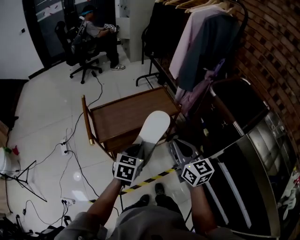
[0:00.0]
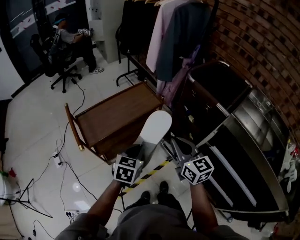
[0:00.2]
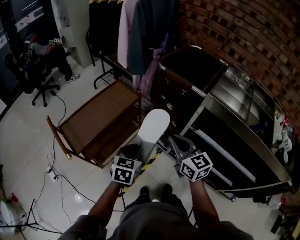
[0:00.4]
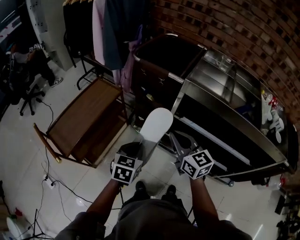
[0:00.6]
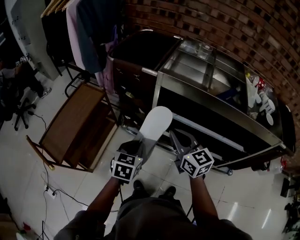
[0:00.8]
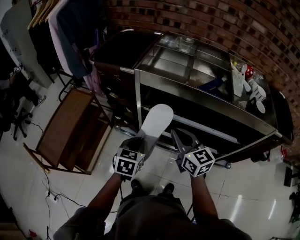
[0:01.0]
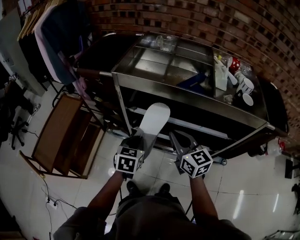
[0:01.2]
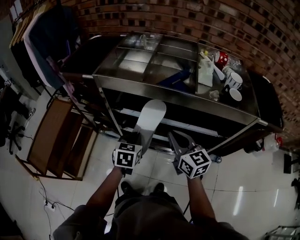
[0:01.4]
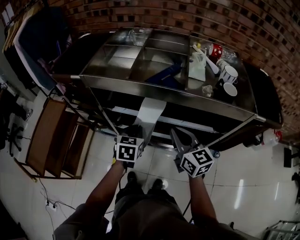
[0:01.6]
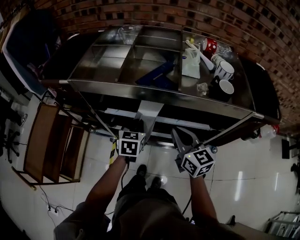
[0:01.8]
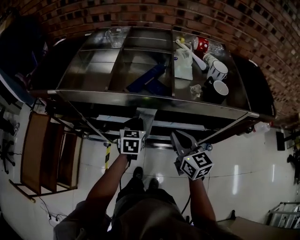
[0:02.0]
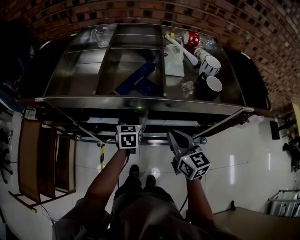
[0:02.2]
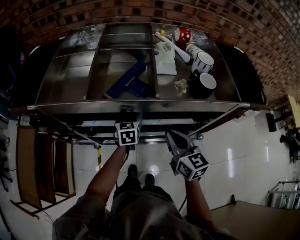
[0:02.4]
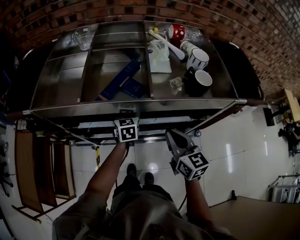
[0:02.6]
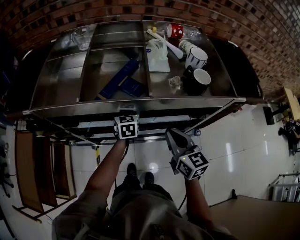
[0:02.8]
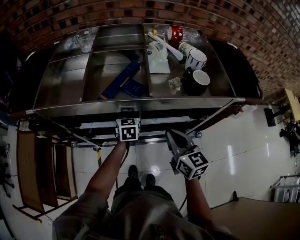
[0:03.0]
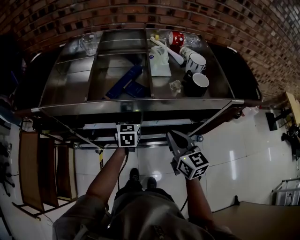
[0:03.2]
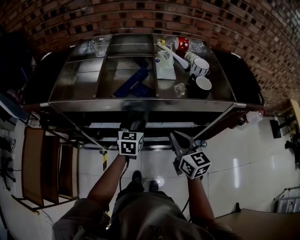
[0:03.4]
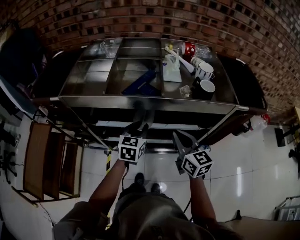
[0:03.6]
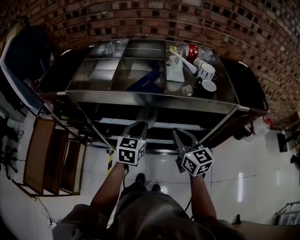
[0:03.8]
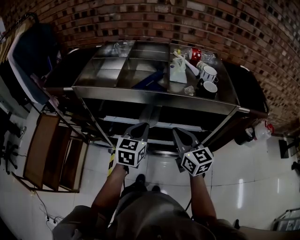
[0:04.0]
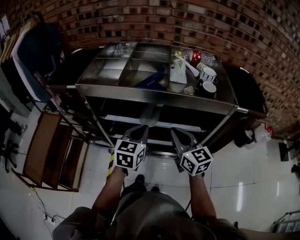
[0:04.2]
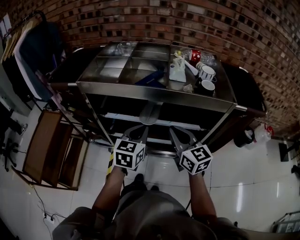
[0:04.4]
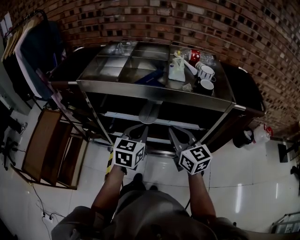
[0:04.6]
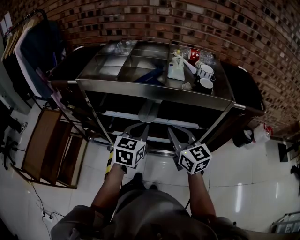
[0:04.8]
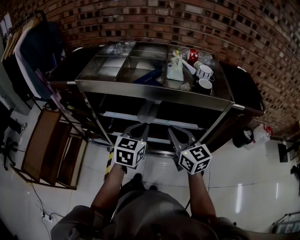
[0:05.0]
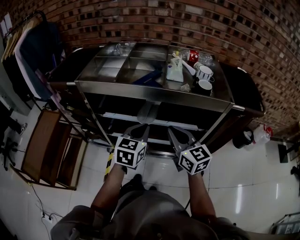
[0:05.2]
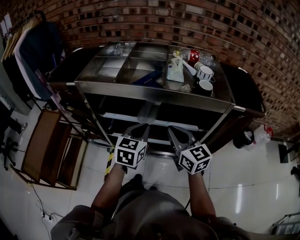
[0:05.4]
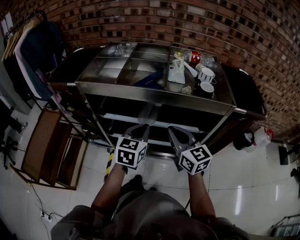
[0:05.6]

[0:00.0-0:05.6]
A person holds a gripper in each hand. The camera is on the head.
0:00.0 to 0:01.4: The two grippers travel together, approximately 50 cm. The right gripper turns by approximately 50 degrees; the left gripper rotates some 50 degrees.
0:01.4 to 0:02.8: The left gripper moves forward and to the right, some 25 cm. The right gripper is displaced to the right by some 15 cm, and turns by approximately 20 degrees.
0:02.8 to 0:04.2: The right gripper moves upward and backward, about 10 cm. Meanwhile the left gripper heads backward and upward, covering roughly 25 cm, and opens, then closes again.
0:04.2 to 0:05.6: There are only small adjustments of the grippers.

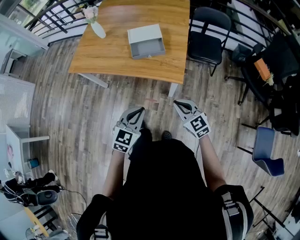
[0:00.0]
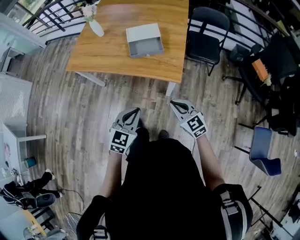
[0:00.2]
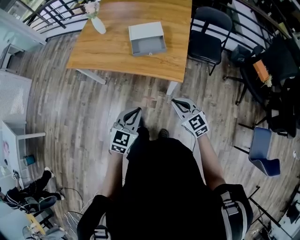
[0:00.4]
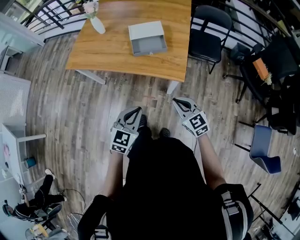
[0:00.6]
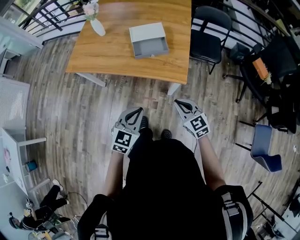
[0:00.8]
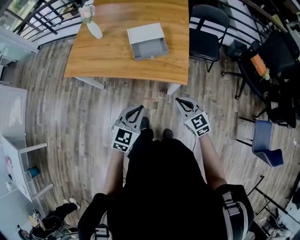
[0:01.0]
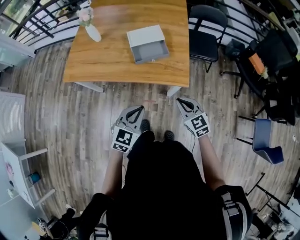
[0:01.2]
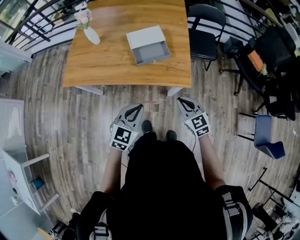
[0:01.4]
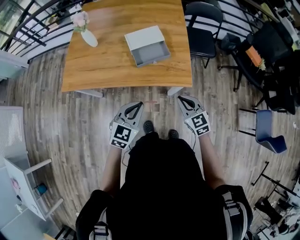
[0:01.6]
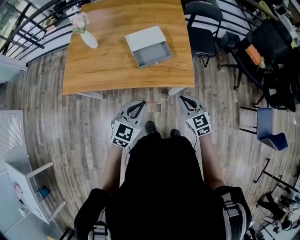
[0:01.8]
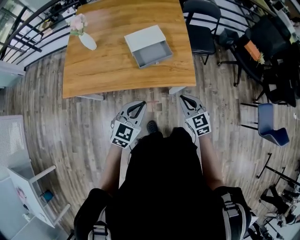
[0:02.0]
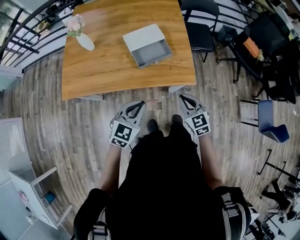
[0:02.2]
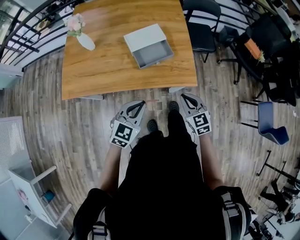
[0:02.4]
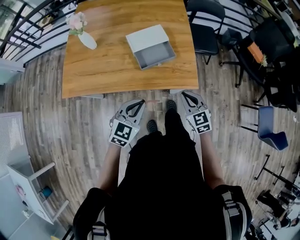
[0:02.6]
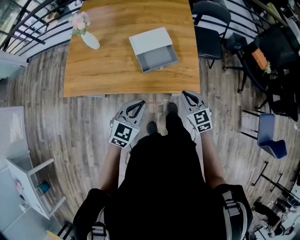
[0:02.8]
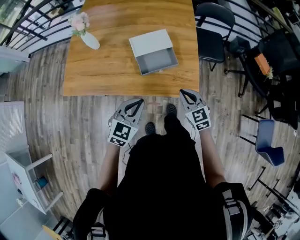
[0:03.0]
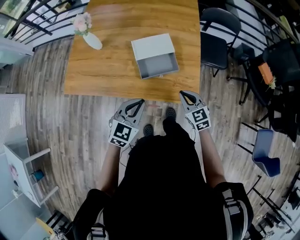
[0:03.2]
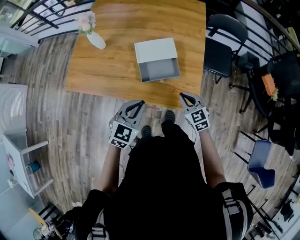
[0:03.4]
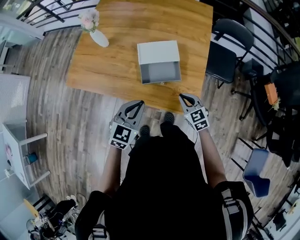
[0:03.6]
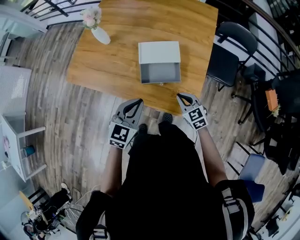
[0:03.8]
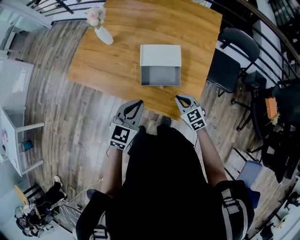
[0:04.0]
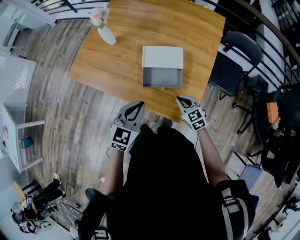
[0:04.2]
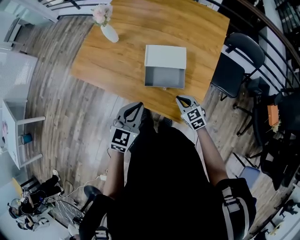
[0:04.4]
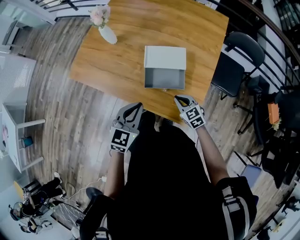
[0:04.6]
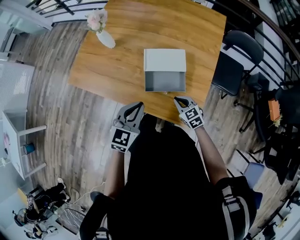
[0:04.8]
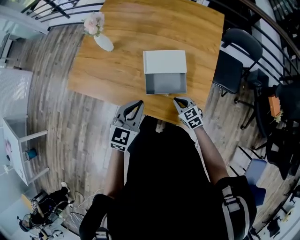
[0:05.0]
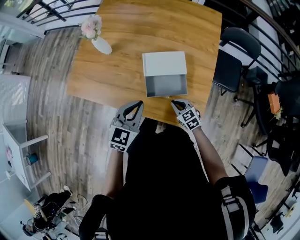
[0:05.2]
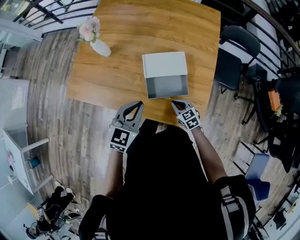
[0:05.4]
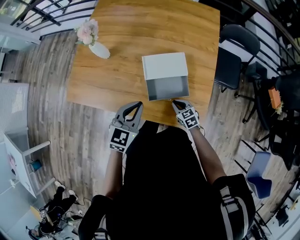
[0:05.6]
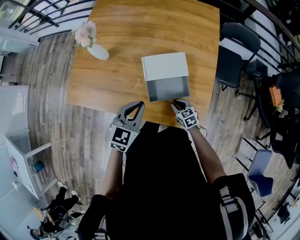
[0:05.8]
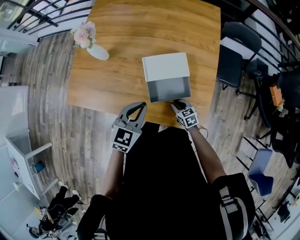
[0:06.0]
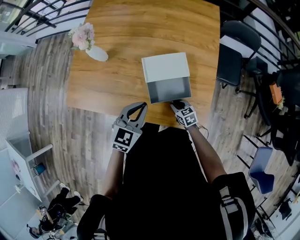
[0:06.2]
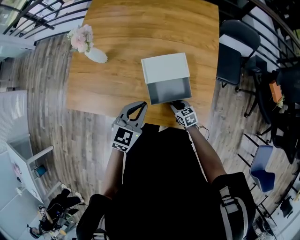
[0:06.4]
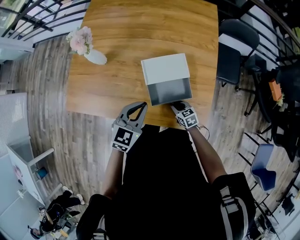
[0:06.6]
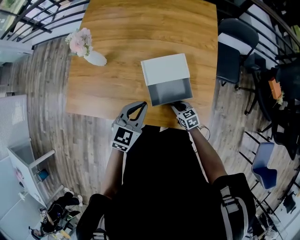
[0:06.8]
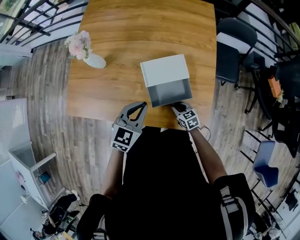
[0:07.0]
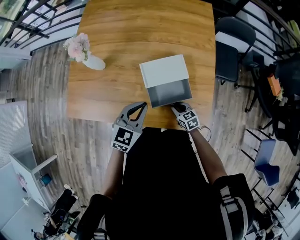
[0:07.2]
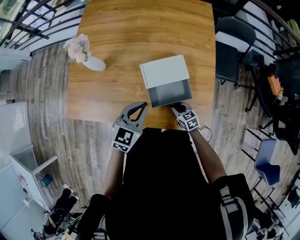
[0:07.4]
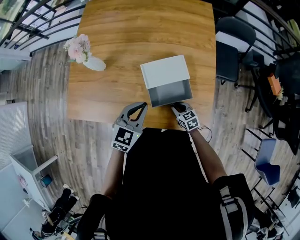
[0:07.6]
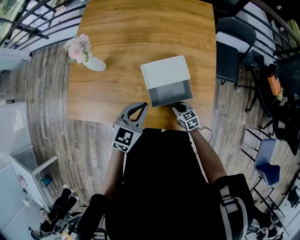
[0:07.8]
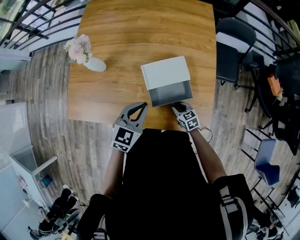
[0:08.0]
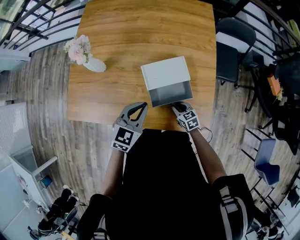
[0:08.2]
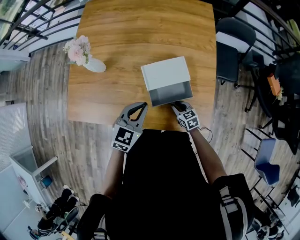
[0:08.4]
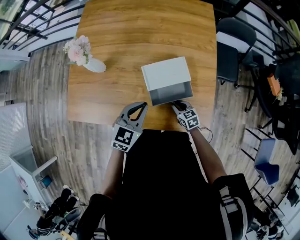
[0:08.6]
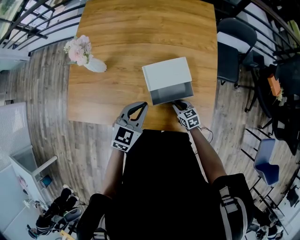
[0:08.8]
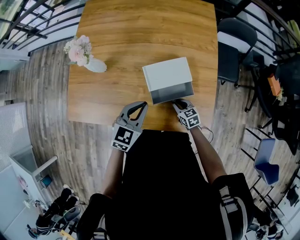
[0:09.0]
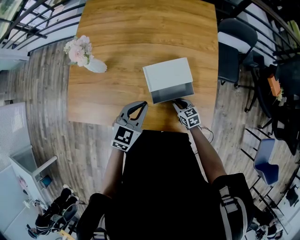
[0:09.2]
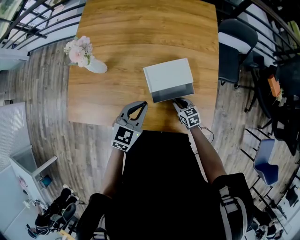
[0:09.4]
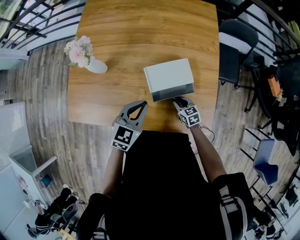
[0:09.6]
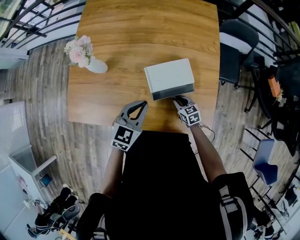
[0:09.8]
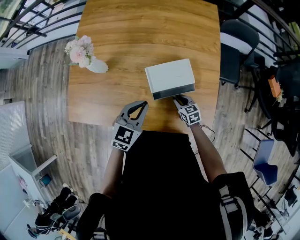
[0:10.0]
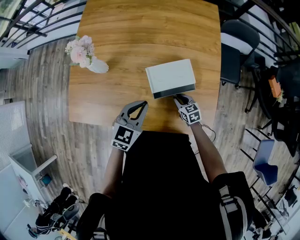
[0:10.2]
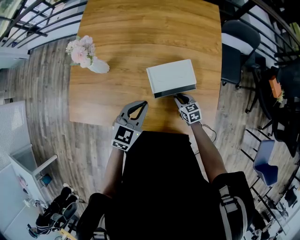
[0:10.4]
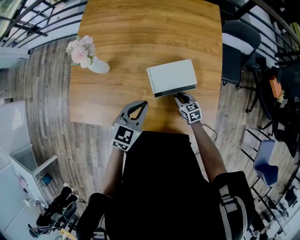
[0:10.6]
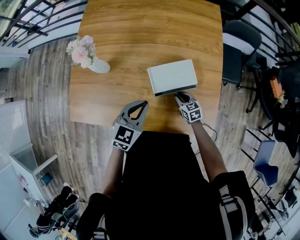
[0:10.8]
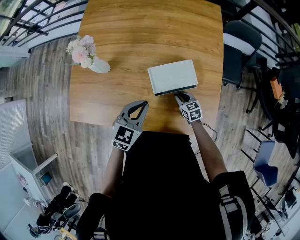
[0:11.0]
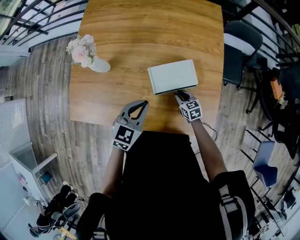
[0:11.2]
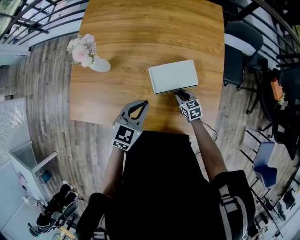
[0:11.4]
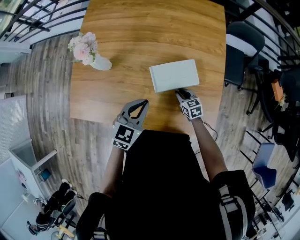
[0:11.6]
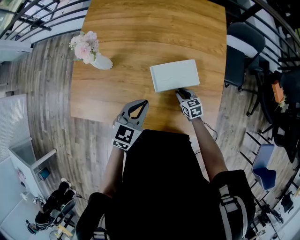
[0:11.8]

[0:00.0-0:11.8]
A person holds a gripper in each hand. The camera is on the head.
0:00.0 to 0:01.4: The right gripper is displaced forward and to the left by roughly 15 cm. The left gripper goes about 20 cm to the left and forward.
0:01.4 to 0:03.0: Both grippers travel together forward, roughly 15 cm.
0:03.0 to 0:04.4: The right gripper shifts by about 15 cm, and changes its angle by about 30 degrees. The left gripper moves some 10 cm, and turns by roughly 30 degrees.
0:04.4 to 0:06.0: The left gripper goes roughly 15 cm forward, while the right gripper goes some 15 cm downward, forward and to the left, and turns by roughly 30 degrees.
0:06.0 to 0:07.4: The grippers make only small movements.
0:07.4 to 0:08.8: The grippers make only small movements.
0:08.8 to 0:10.4: The right gripper heads forward, covering some 5 cm.
0:10.4 to 0:11.8: There are only small adjustments of the grippers.

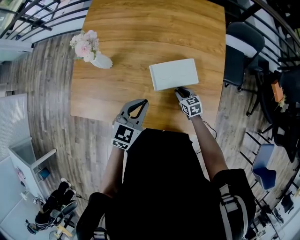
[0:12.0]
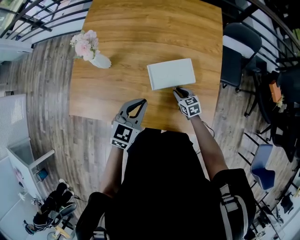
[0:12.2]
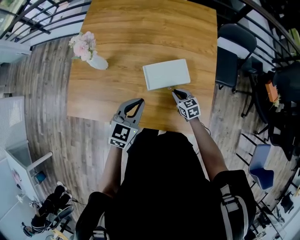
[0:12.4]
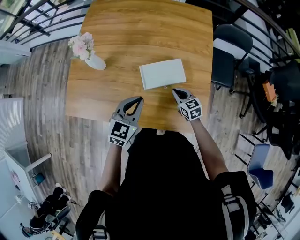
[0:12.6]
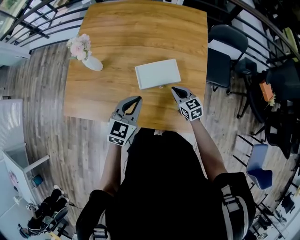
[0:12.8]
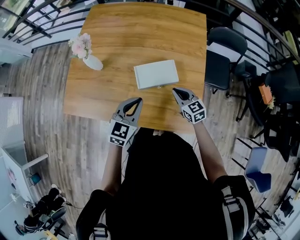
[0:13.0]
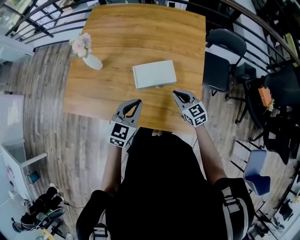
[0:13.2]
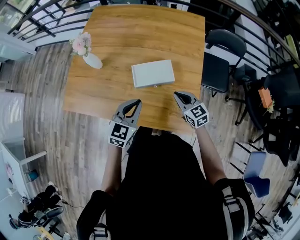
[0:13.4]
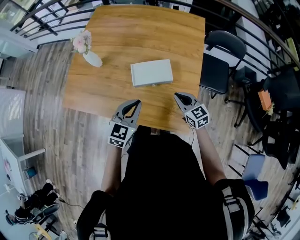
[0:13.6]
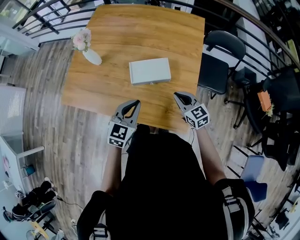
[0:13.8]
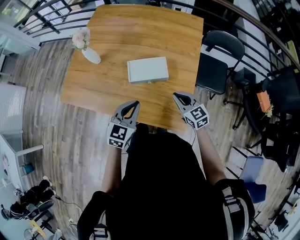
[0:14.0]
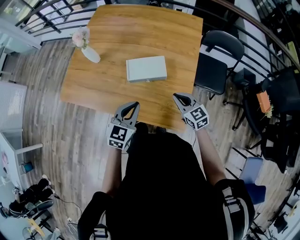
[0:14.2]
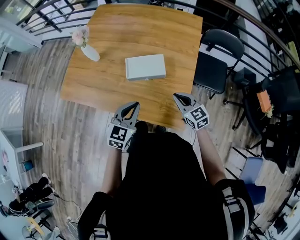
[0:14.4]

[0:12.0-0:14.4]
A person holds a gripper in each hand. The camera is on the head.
0:12.0 to 0:13.2: The left gripper moves to the right and backward, about 10 cm, while the right gripper travels upward, to the right and backward by approximately 20 cm, and turns by approximately 20 degrees.
0:13.2 to 0:14.4: The two grippers go approximately 10 cm backward and to the right.

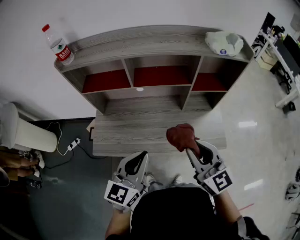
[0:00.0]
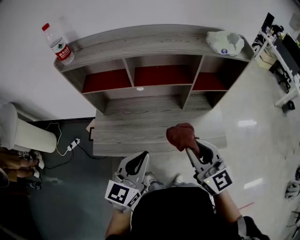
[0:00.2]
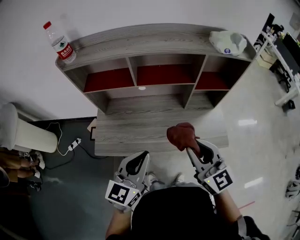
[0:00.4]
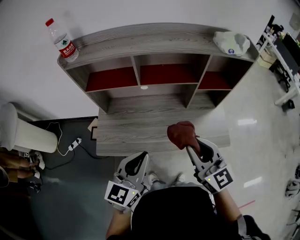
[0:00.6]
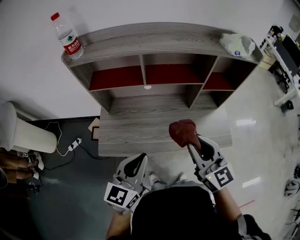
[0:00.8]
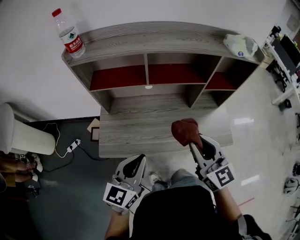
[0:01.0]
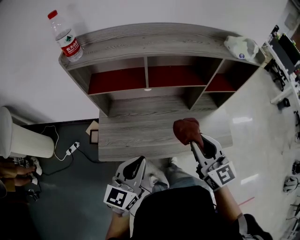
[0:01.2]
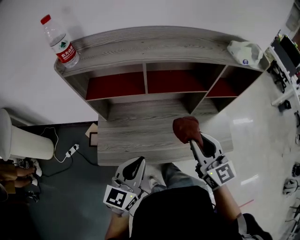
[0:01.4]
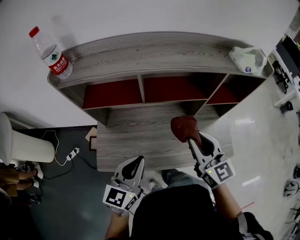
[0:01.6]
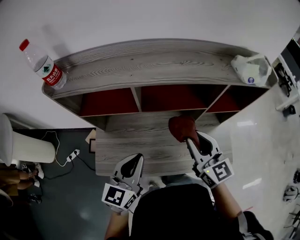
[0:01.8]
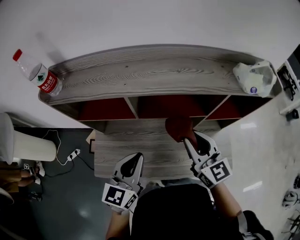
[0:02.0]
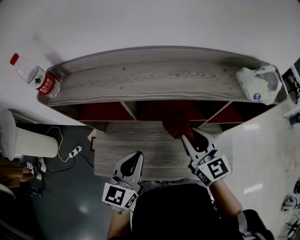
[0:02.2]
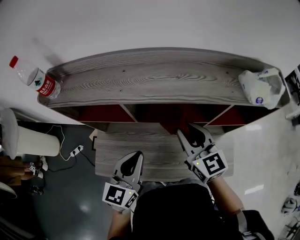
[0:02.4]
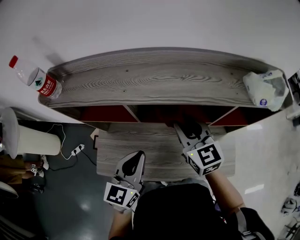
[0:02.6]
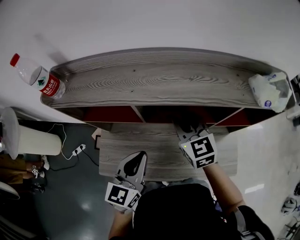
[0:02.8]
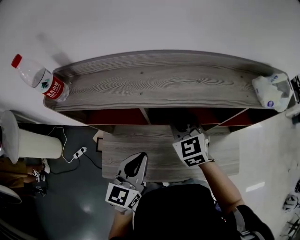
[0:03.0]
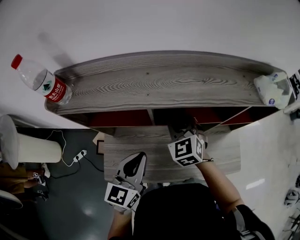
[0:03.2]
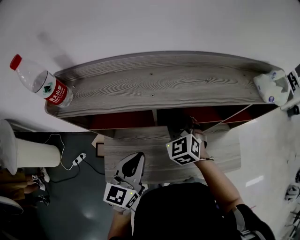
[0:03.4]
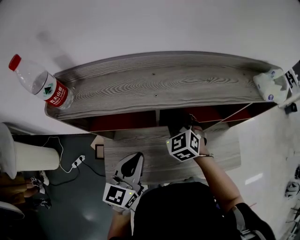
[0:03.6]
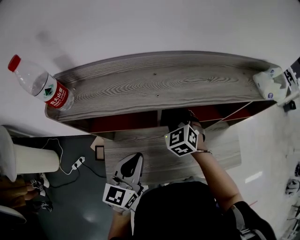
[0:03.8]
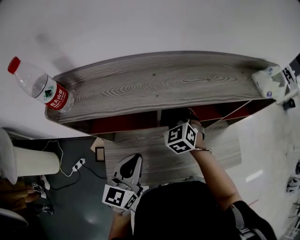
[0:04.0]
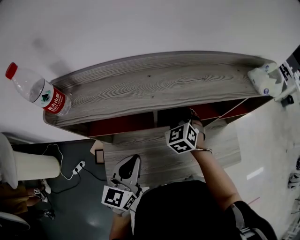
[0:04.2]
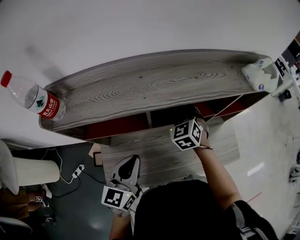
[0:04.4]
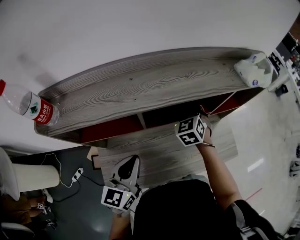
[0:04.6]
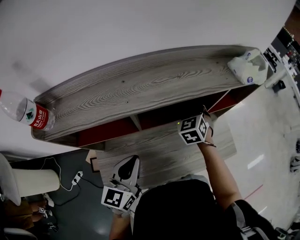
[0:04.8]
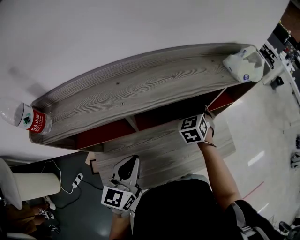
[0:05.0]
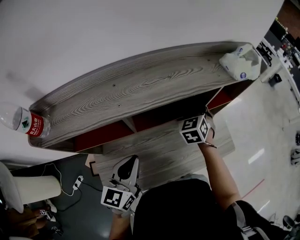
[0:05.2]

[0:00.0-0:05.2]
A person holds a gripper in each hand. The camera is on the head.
0:00.0 to 0:01.8: The right gripper goes some 20 cm forward, while the left gripper moves forward and to the left, approximately 15 cm.
0:01.8 to 0:03.4: The left gripper heads forward and to the left, covering about 10 cm. The right gripper goes some 20 cm forward, to the left and downward, and turns by some 40 degrees.
0:03.4 to 0:05.2: The right gripper is displaced to the right and forward by approximately 20 cm, and rotates roughly 30 degrees.
